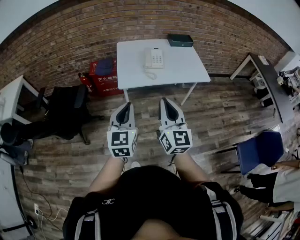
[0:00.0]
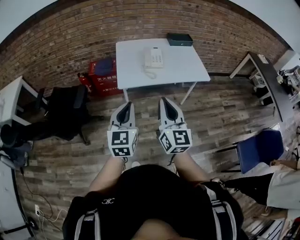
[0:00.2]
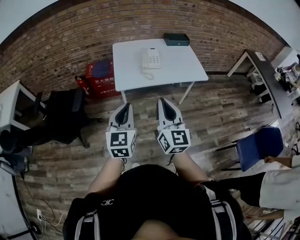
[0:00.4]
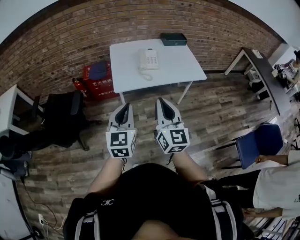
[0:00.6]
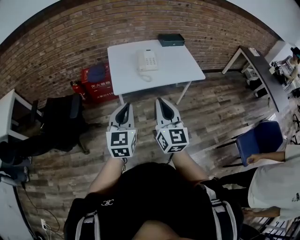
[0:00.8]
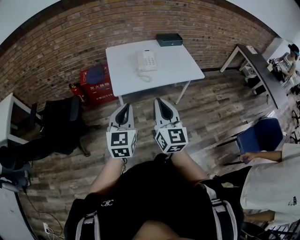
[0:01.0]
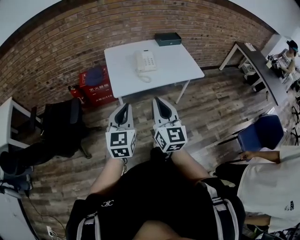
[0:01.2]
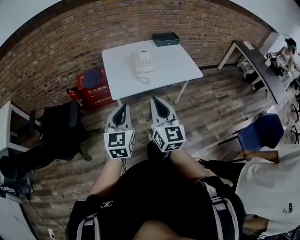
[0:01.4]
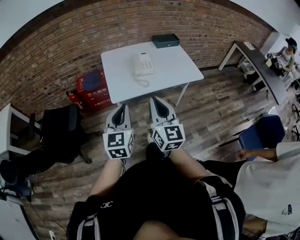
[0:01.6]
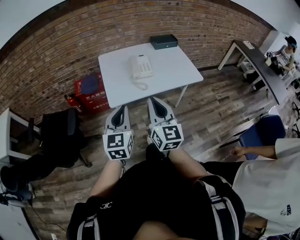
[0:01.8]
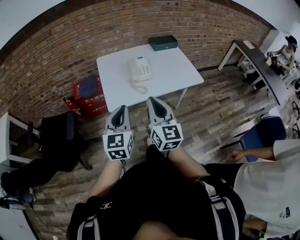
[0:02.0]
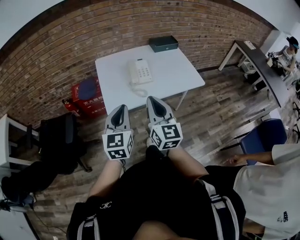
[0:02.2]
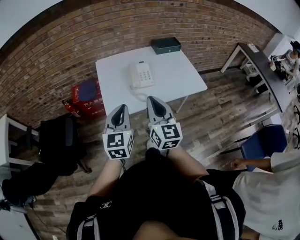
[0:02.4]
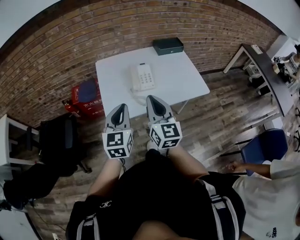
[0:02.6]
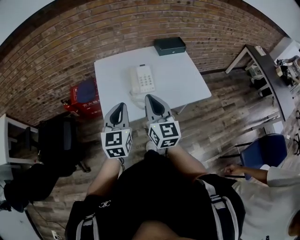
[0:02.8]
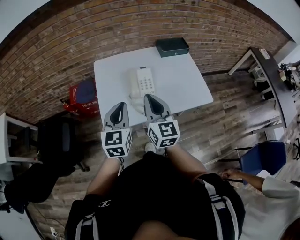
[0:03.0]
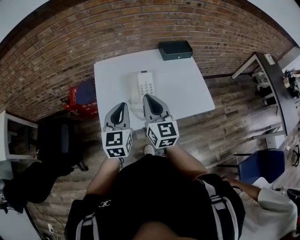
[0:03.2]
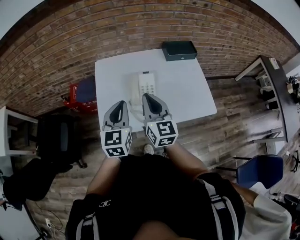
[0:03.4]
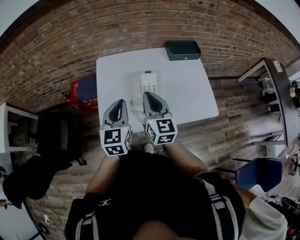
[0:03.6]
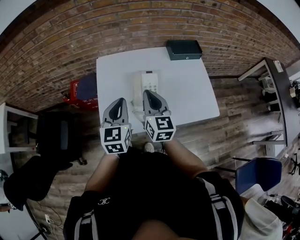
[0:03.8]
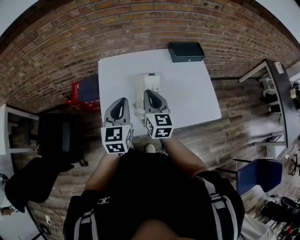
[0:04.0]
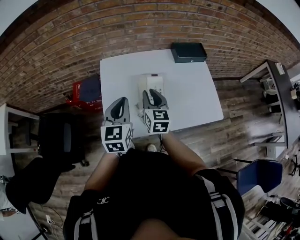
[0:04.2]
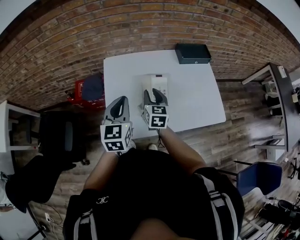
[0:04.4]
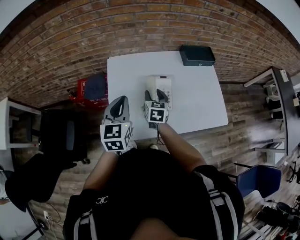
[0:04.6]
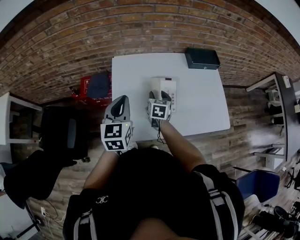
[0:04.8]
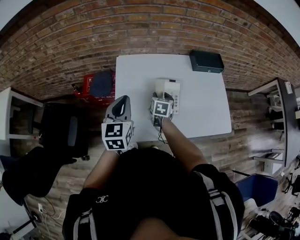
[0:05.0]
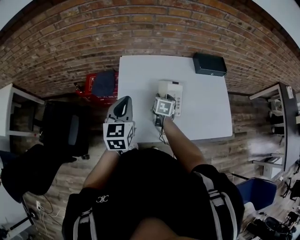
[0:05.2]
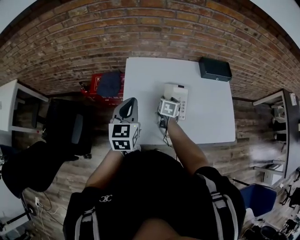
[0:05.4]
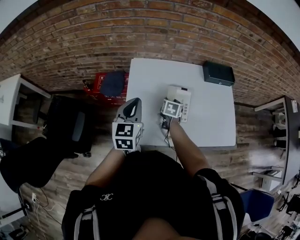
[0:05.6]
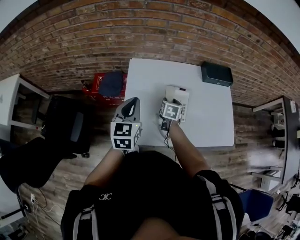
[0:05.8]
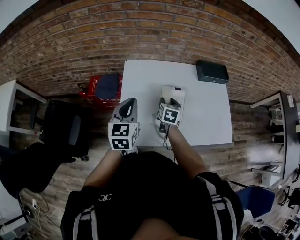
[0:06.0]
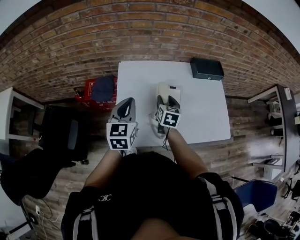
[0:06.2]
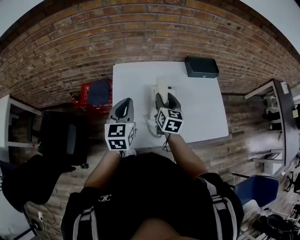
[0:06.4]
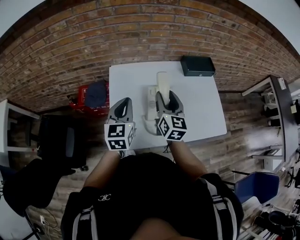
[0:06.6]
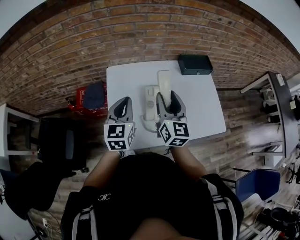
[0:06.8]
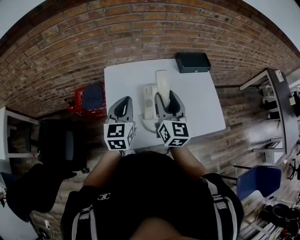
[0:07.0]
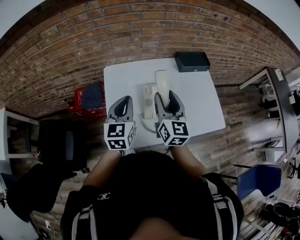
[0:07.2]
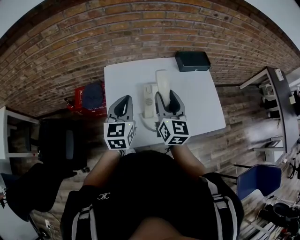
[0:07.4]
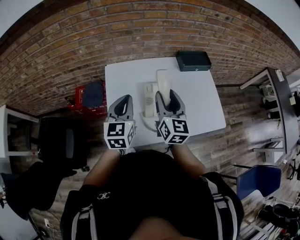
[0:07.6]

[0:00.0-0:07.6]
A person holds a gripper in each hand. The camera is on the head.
0:00.0 to 0:01.6: The two grippers go some 10 cm forward.
0:01.6 to 0:03.0: Both grippers travel together forward, about 30 cm.
0:03.0 to 0:04.6: The left gripper shifts some 15 cm forward; the right gripper moves forward and downward, roughly 30 cm, changes its angle by roughly 30 degrees, and opens.
0:06.0 to 0:07.6: The right gripper heads upward, covering approximately 20 cm, and tilts its fingers approximately 30 degrees upward. Meanwhile the left gripper is displaced to the right by approximately 5 cm.

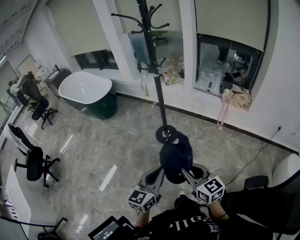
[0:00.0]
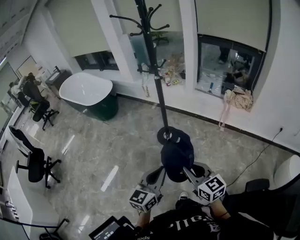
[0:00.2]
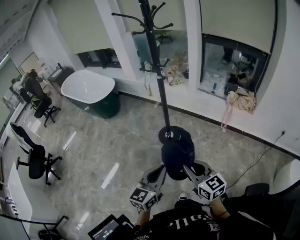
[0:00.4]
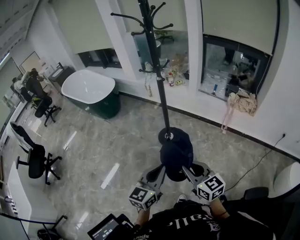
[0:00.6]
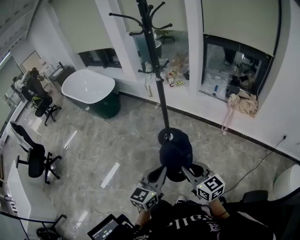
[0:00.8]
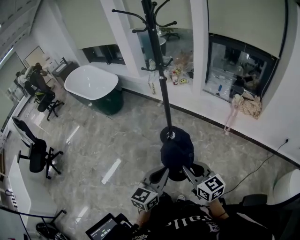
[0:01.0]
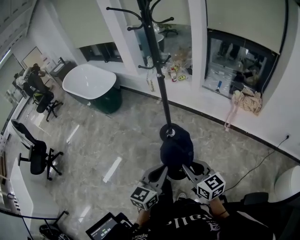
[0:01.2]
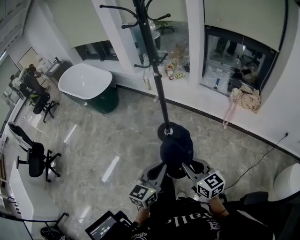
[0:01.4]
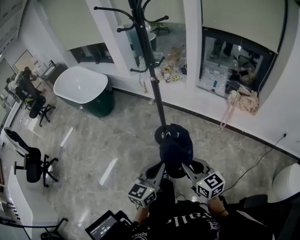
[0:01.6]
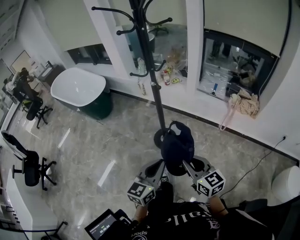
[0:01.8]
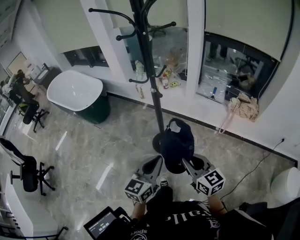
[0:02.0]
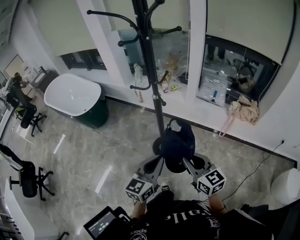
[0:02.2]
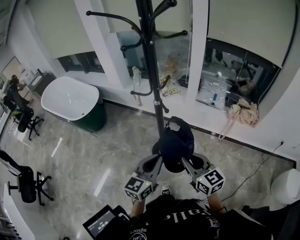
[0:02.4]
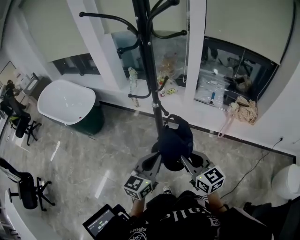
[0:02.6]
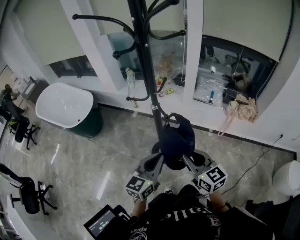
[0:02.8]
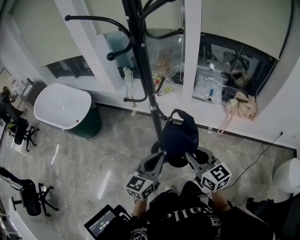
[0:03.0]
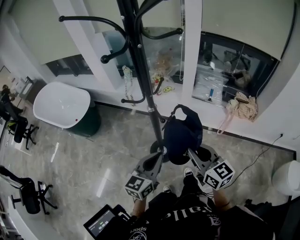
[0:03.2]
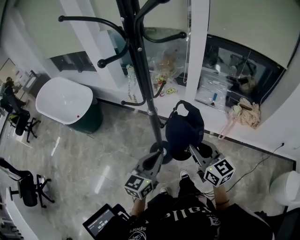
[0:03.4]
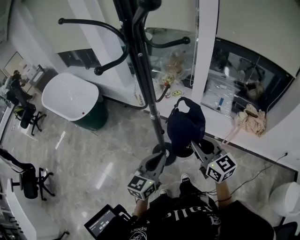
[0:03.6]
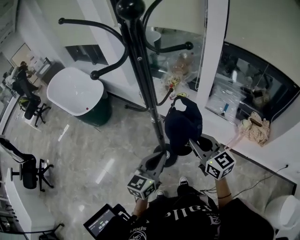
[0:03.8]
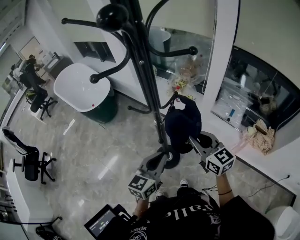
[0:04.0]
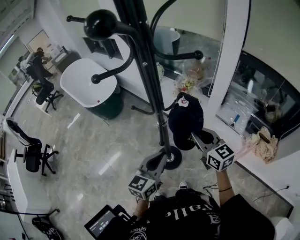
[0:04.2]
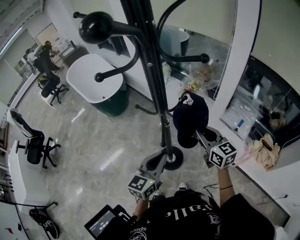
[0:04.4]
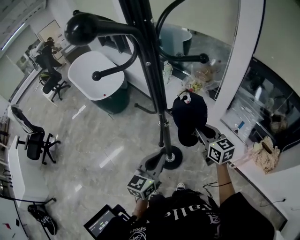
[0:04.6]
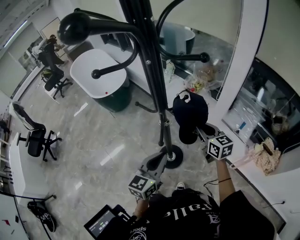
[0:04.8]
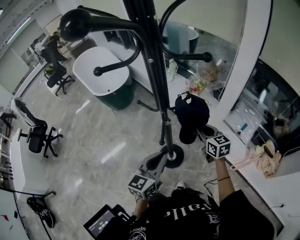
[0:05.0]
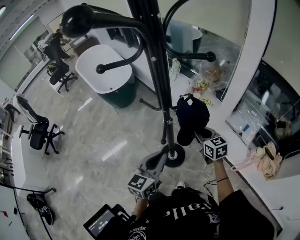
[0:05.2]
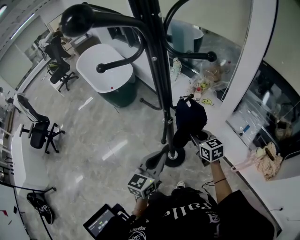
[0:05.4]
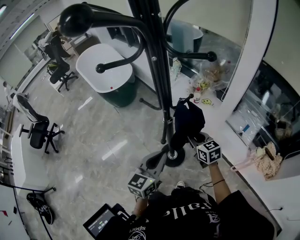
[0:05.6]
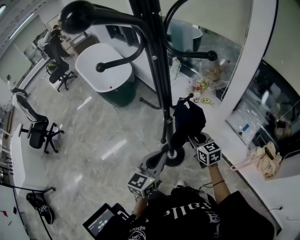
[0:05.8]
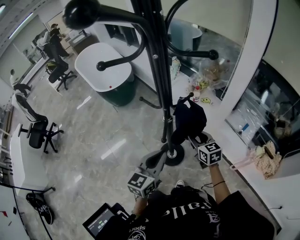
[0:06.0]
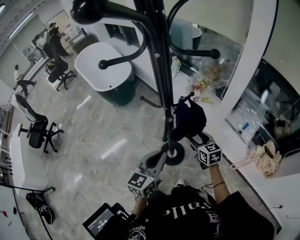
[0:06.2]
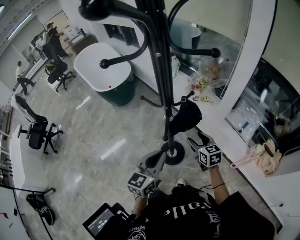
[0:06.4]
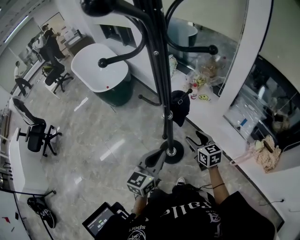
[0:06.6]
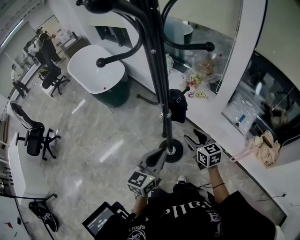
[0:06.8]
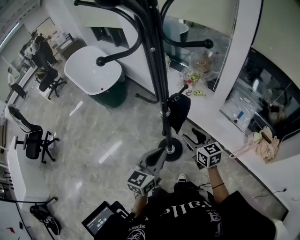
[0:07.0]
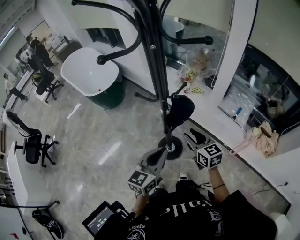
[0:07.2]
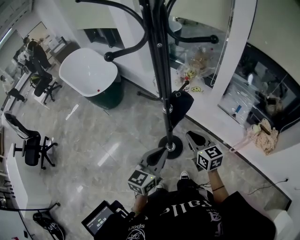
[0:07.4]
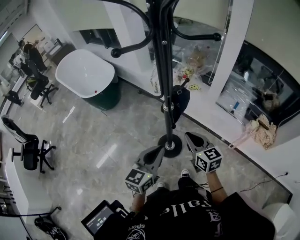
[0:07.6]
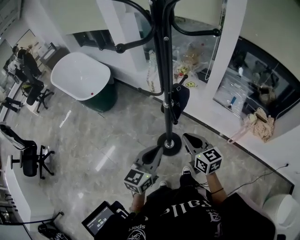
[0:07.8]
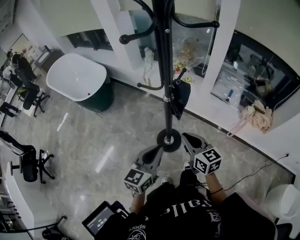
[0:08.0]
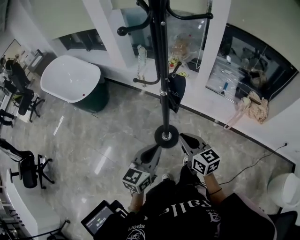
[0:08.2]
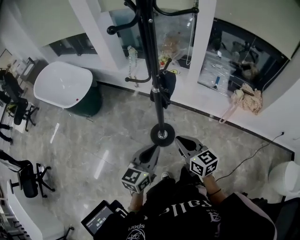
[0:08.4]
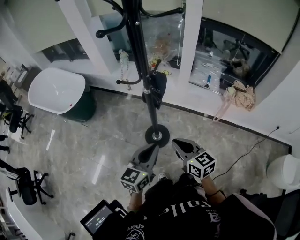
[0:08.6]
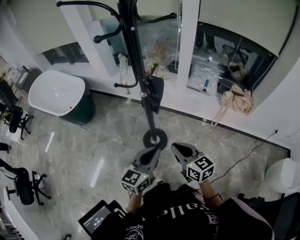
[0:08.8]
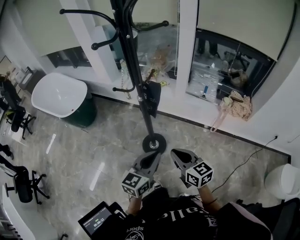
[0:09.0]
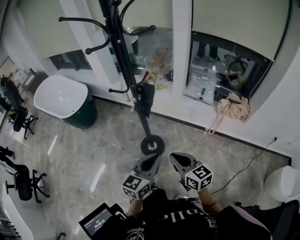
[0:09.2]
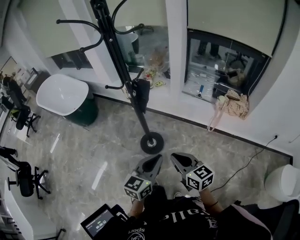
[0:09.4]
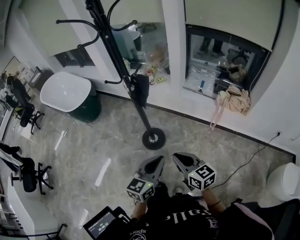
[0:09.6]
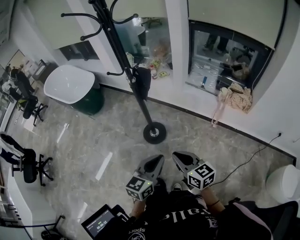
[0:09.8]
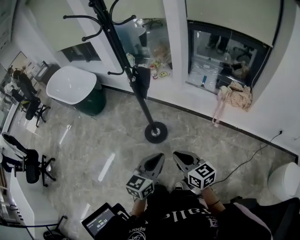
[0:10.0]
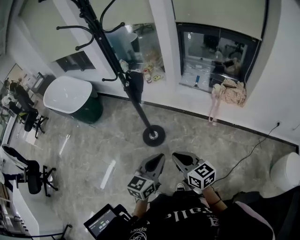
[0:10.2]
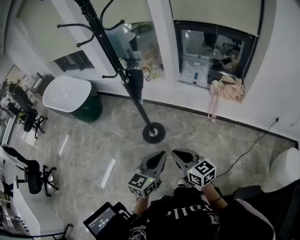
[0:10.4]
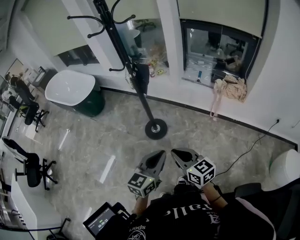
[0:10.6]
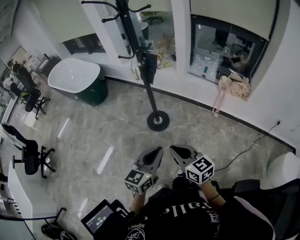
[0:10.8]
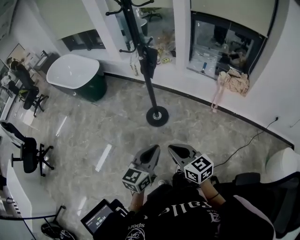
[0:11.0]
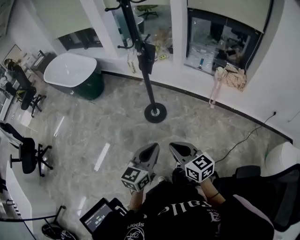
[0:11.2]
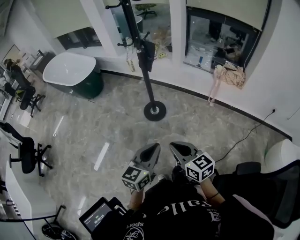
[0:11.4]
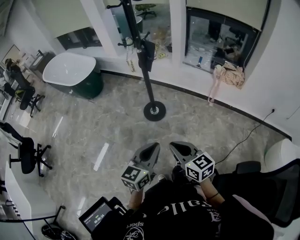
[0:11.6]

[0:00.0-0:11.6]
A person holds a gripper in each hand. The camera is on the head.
0:00.0 to 0:01.4: The right gripper is displaced forward by approximately 15 cm; the left gripper is displaced forward and to the right by some 15 cm.
0:01.4 to 0:02.8: Both grippers move forward, approximately 30 cm.
0:02.8 to 0:04.4: The right gripper travels forward by approximately 30 cm; the left gripper goes roughly 15 cm forward and to the right, and turns by about 30 degrees.
0:04.4 to 0:05.8: The right gripper heads downward, covering about 10 cm.
0:05.8 to 0:07.2: The right gripper shifts about 5 cm backward, and opens its fingers.
0:07.2 to 0:08.8: The left gripper travels backward by some 10 cm, and rotates approximately 20 degrees. The right gripper travels backward by some 20 cm, and closes up.
0:08.8 to 0:10.2: The two grippers go roughly 25 cm backward and to the right.
0:10.2 to 0:11.6: Both grippers travel together backward and to the left, roughly 20 cm.

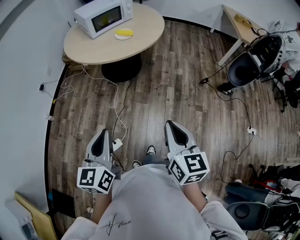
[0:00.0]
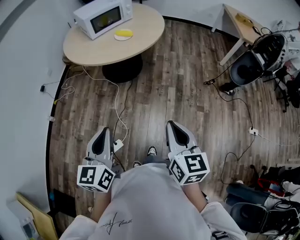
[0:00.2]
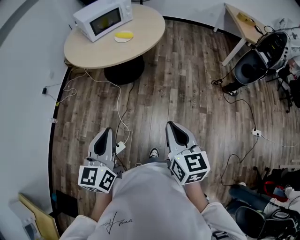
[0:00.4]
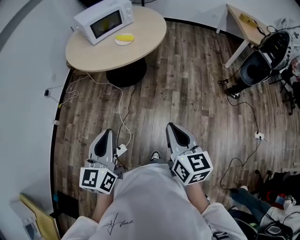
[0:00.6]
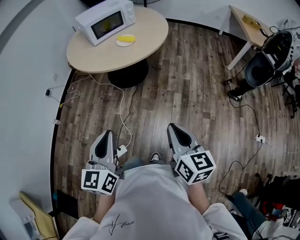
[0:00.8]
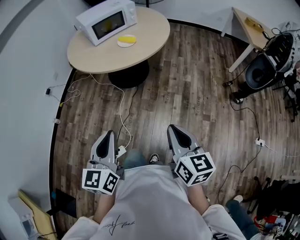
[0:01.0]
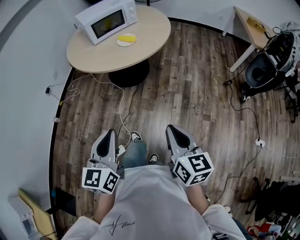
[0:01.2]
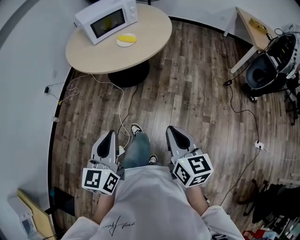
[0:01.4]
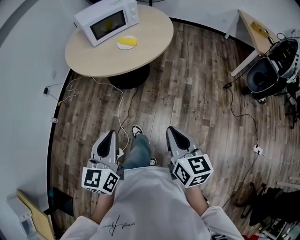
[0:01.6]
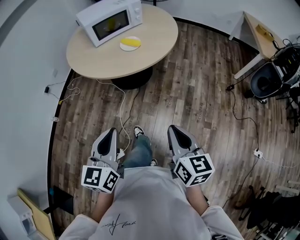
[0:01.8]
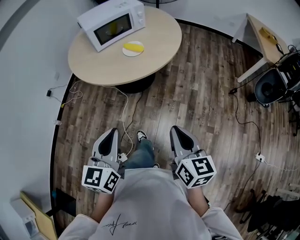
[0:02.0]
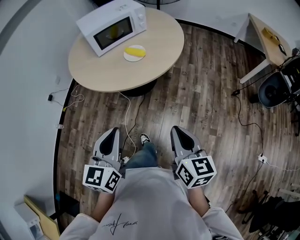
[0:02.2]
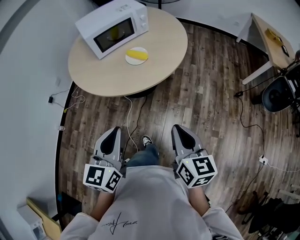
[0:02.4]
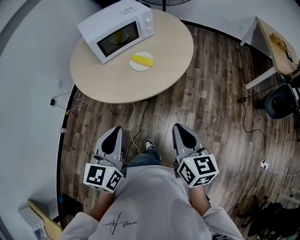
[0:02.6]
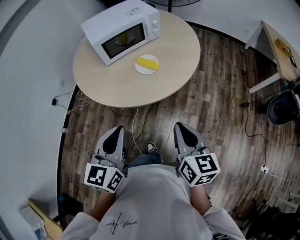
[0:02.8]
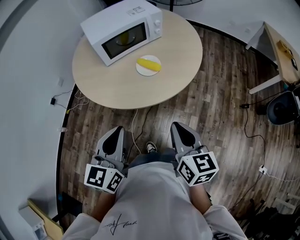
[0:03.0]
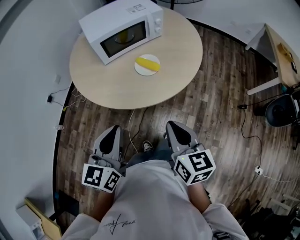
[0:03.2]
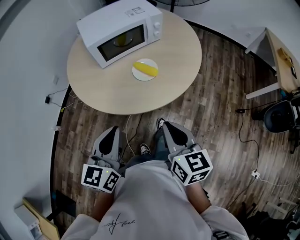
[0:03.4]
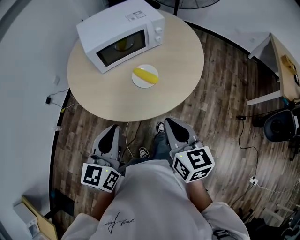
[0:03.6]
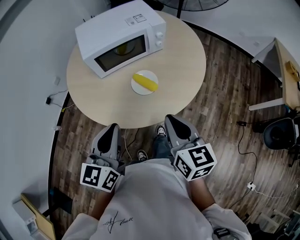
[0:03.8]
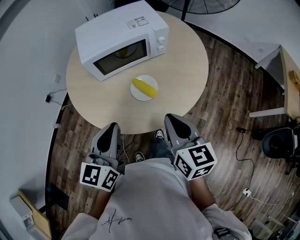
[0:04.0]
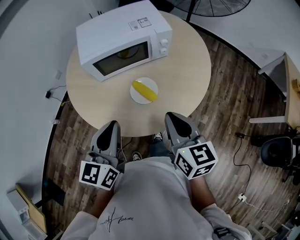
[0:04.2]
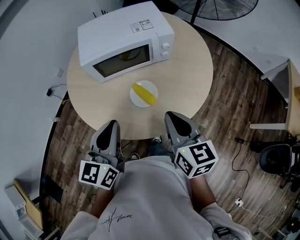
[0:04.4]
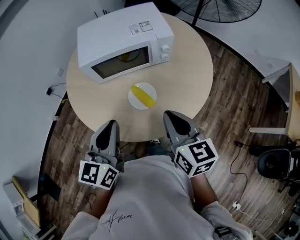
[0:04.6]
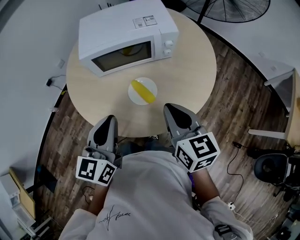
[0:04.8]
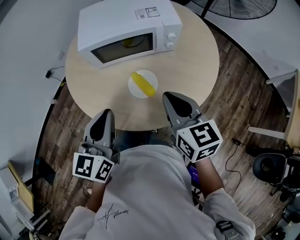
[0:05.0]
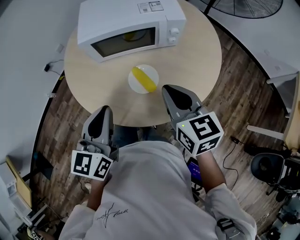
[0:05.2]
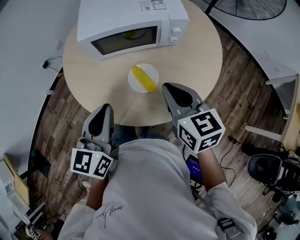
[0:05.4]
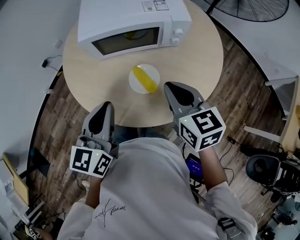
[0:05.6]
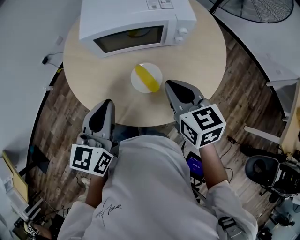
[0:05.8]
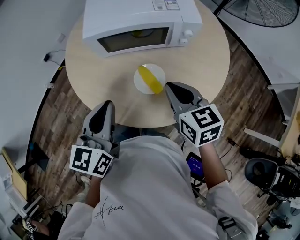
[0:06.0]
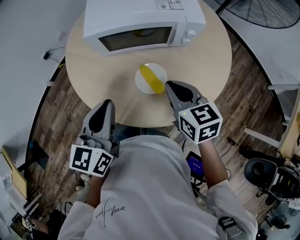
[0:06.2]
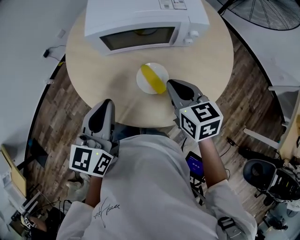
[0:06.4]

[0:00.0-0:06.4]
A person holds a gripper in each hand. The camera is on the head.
0:00.0 to 0:01.6: The grippers both shift forward and to the right by some 15 cm.
0:01.6 to 0:03.2: Both grippers travel together forward, about 35 cm.
0:03.2 to 0:04.8: The left gripper moves forward and to the right, roughly 25 cm. The right gripper shifts some 30 cm forward, and rotates some 20 degrees.
0:04.8 to 0:06.4: The right gripper travels forward and downward by approximately 10 cm; the left gripper ends up approximately 5 cm from where it was.
